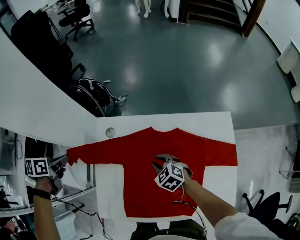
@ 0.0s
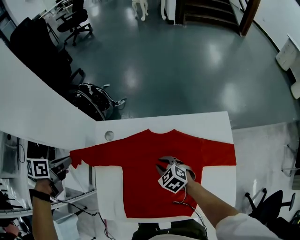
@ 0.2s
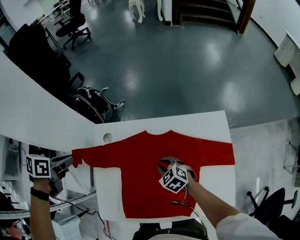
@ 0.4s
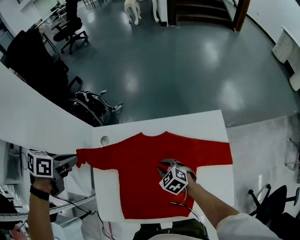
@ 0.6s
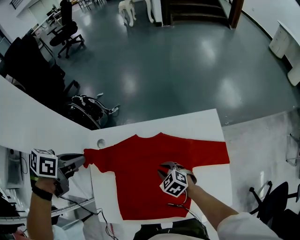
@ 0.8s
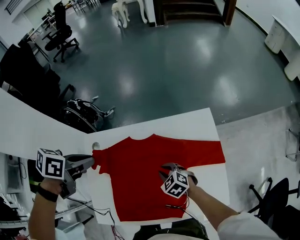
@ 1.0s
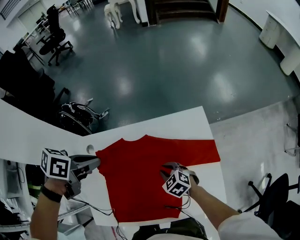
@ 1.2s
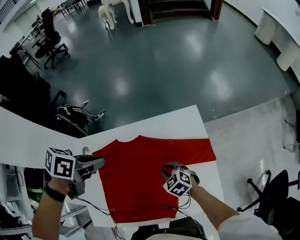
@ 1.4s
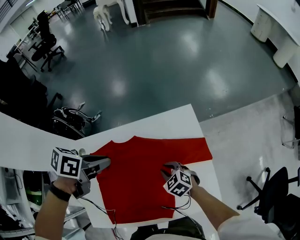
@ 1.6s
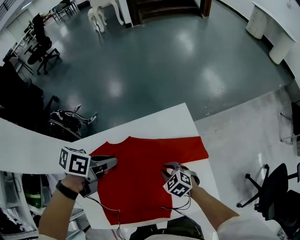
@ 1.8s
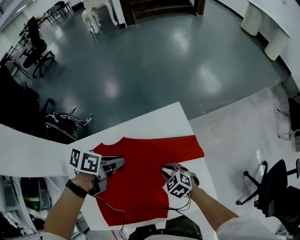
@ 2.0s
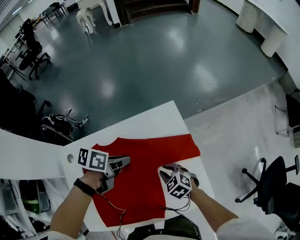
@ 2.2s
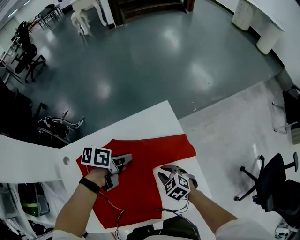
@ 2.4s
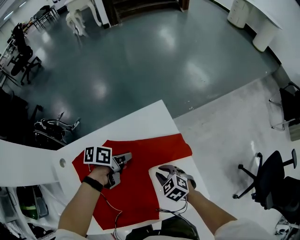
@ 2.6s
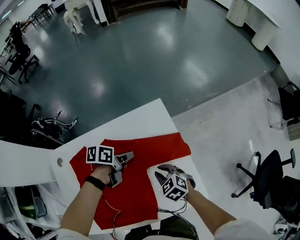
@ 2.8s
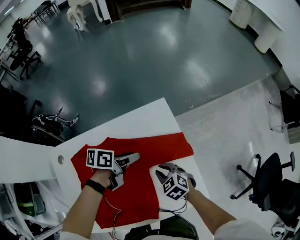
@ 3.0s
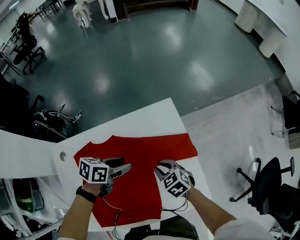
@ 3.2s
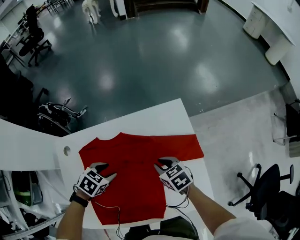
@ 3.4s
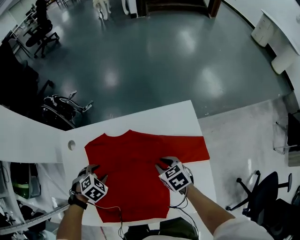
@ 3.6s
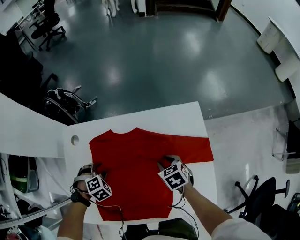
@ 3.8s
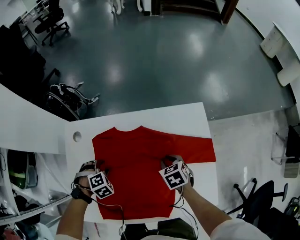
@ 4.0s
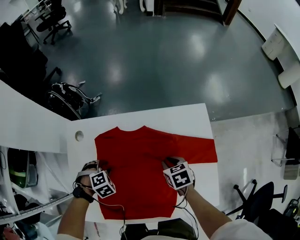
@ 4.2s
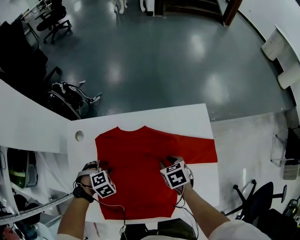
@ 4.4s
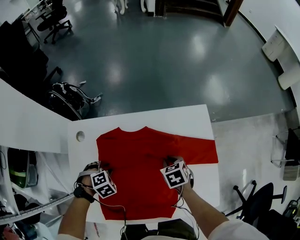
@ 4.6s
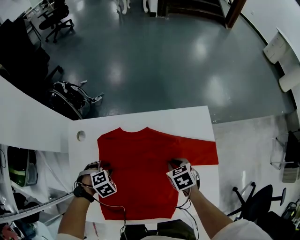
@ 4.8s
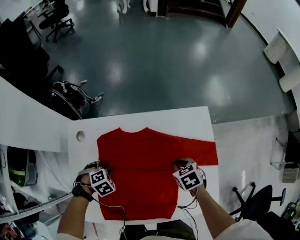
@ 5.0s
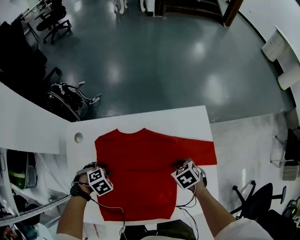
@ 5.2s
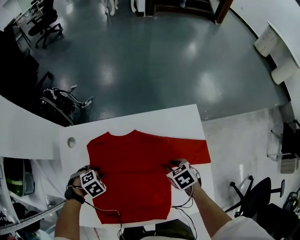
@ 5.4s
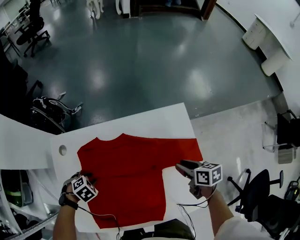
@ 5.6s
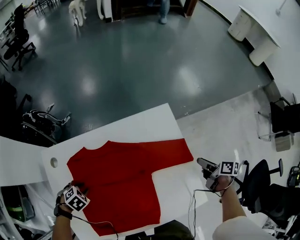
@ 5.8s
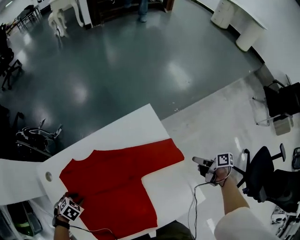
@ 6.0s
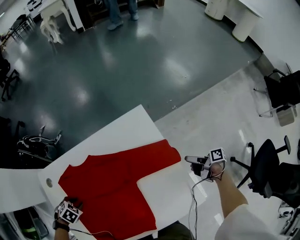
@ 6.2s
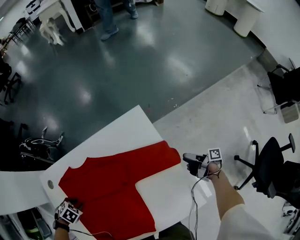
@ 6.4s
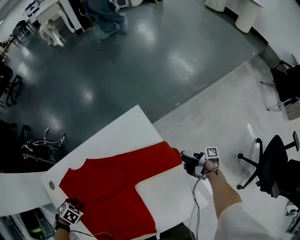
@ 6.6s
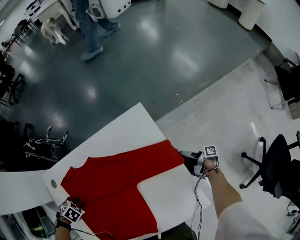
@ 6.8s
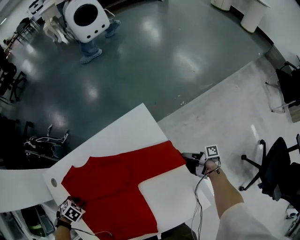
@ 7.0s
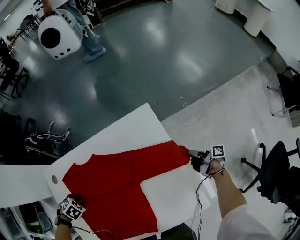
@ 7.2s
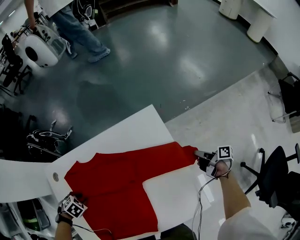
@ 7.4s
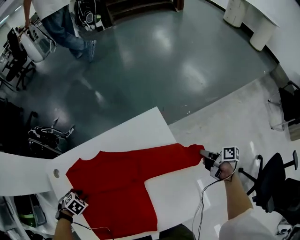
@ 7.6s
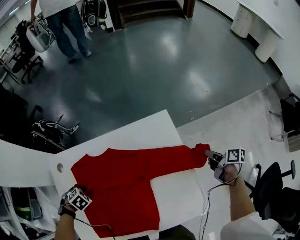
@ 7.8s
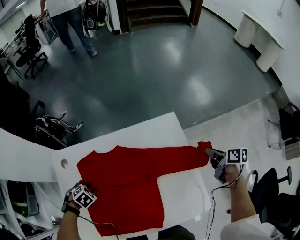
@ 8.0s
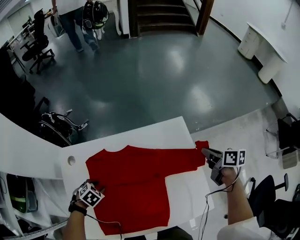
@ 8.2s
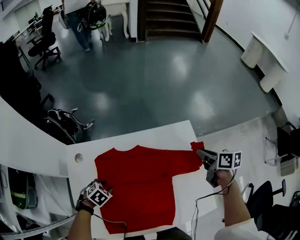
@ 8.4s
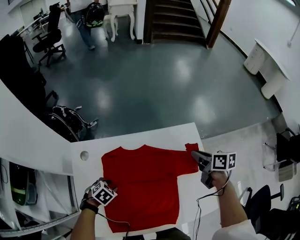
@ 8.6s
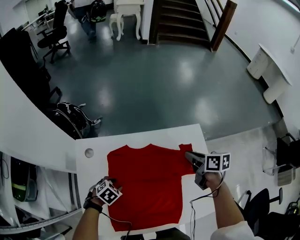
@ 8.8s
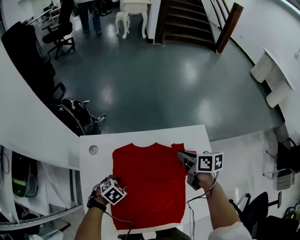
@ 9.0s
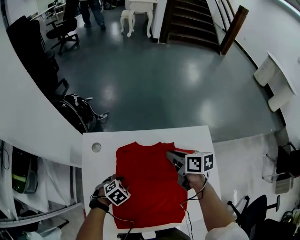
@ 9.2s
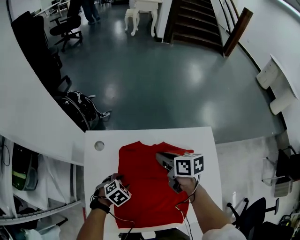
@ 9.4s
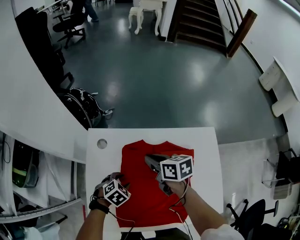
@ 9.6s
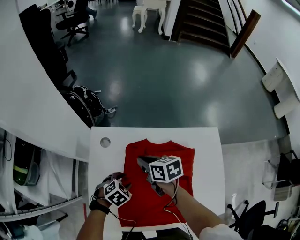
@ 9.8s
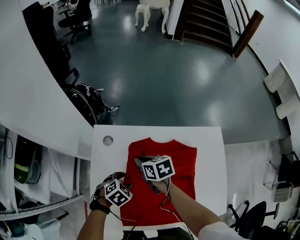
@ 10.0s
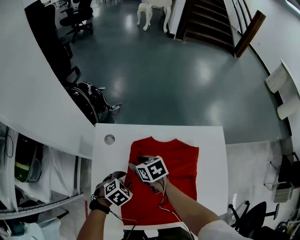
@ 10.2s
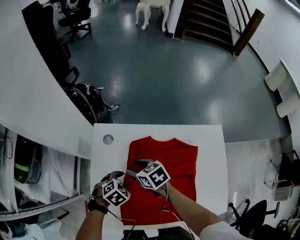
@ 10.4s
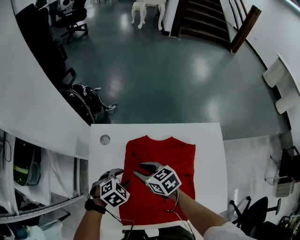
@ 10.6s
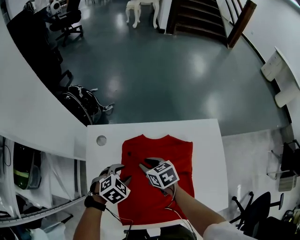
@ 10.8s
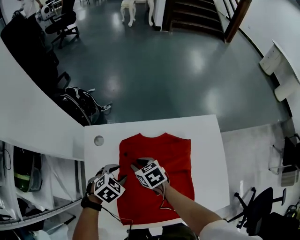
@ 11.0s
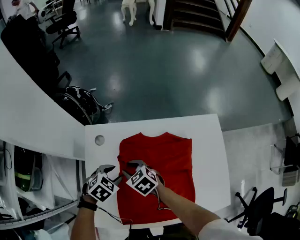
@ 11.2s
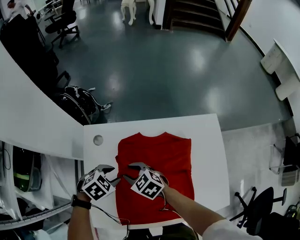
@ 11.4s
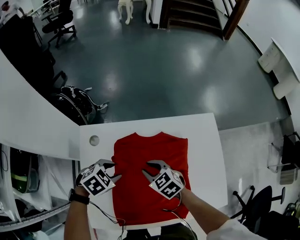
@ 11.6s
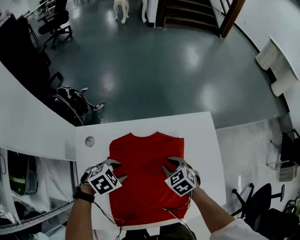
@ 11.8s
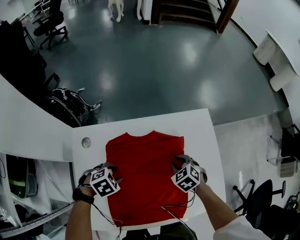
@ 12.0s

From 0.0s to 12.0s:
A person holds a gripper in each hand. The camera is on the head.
From 0.0s to 1.6s: The left gripper ends up some 40 cm from where it was, and rotates some 40 degrees. The right gripper moves some 25 cm.
From 1.6s to 3.0s: The left gripper ends up roughly 25 cm from where it was, and opens its fingers, while the right gripper ends up some 10 cm from where it was.
From 3.0s to 4.4s: The left gripper changes place by about 35 cm, and angles its fingers downward, by about 50 degrees; the right gripper changes place by roughly 10 cm.
From 4.4s to 6.0s: The right gripper moves about 35 cm, and rotates around the line of its fingers by roughly 70 degrees, clockwise from behind.
From 6.0s to 7.6s: The right gripper reaches some 10 cm downward, then returns, and closes.
From 7.6s to 9.0s: The left gripper swivels about 30 degrees; the right gripper changes place by about 50 cm, and rotates around the line of its fingers by approximately 40 degrees, counterclockwise from behind.
From 9.0s to 10.4s: The left gripper goes roughly 5 cm to the left, while the right gripper moves to the left, about 30 cm, changes its angle by about 40 degrees, and opens.
From 10.4s to 12.0s: The left gripper moves about 5 cm, and turns by some 20 degrees, while the right gripper shifts by about 30 cm, and turns by some 40 degrees.

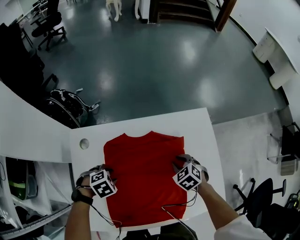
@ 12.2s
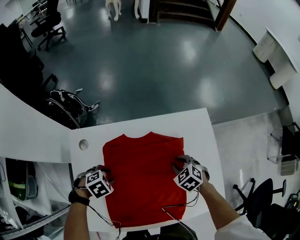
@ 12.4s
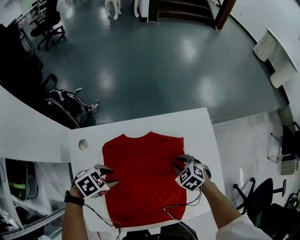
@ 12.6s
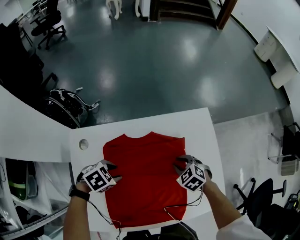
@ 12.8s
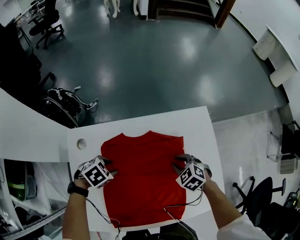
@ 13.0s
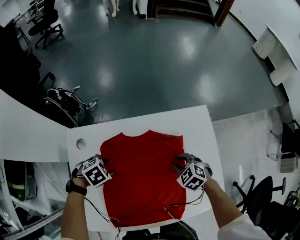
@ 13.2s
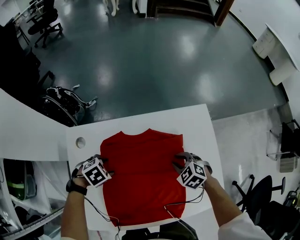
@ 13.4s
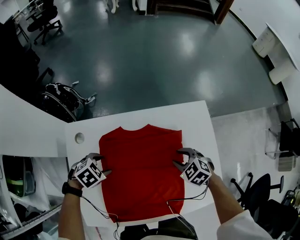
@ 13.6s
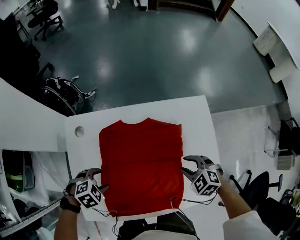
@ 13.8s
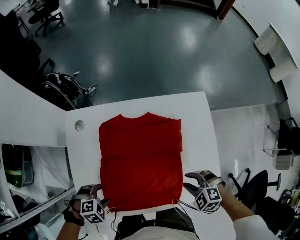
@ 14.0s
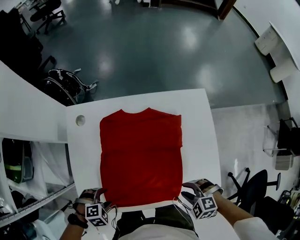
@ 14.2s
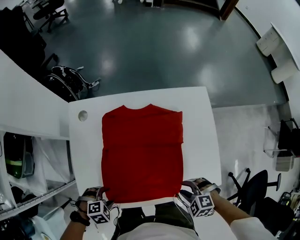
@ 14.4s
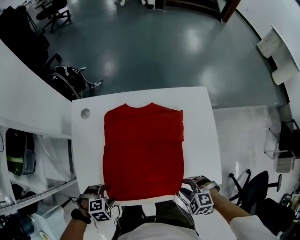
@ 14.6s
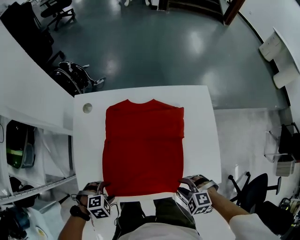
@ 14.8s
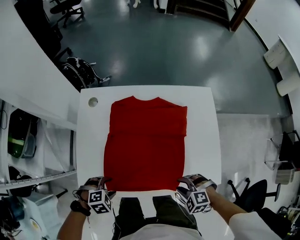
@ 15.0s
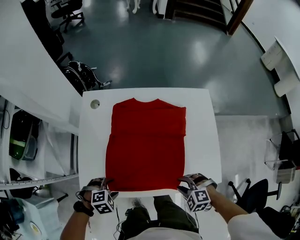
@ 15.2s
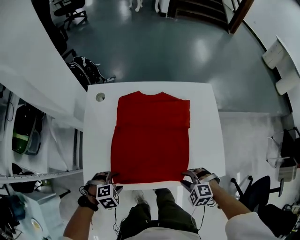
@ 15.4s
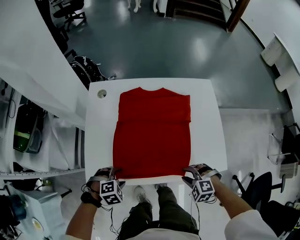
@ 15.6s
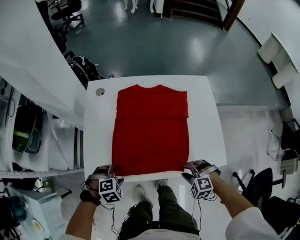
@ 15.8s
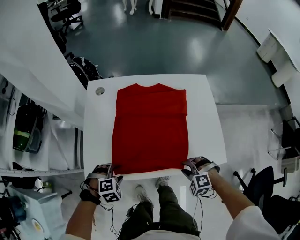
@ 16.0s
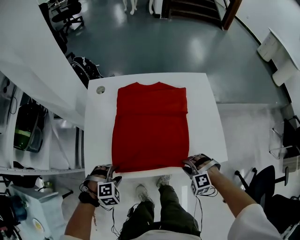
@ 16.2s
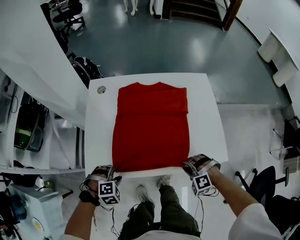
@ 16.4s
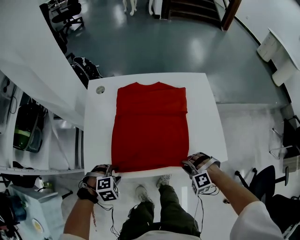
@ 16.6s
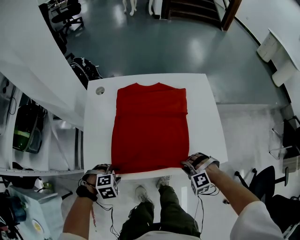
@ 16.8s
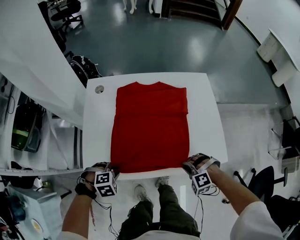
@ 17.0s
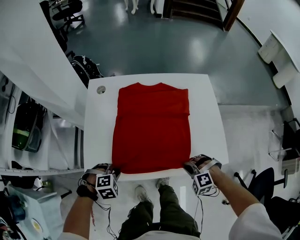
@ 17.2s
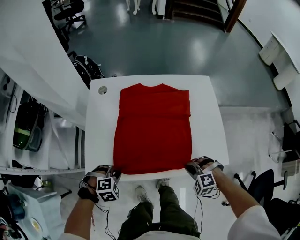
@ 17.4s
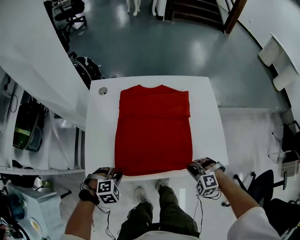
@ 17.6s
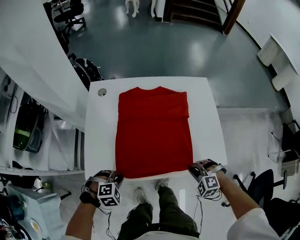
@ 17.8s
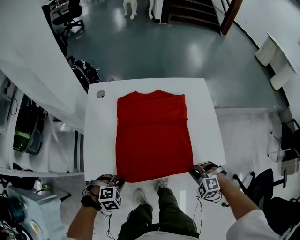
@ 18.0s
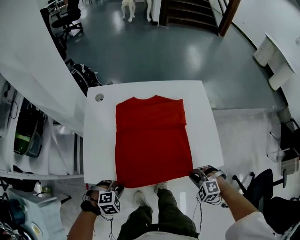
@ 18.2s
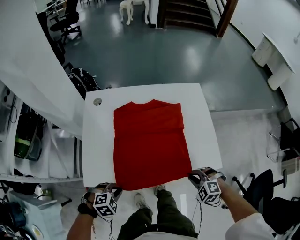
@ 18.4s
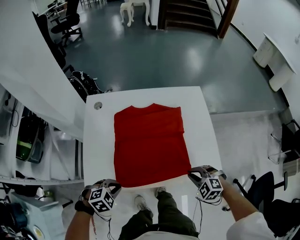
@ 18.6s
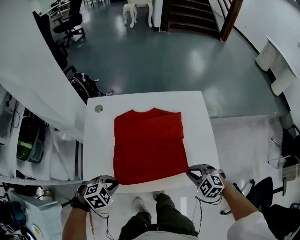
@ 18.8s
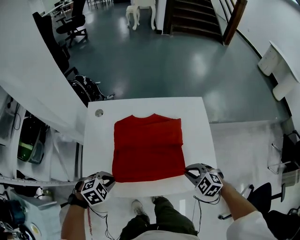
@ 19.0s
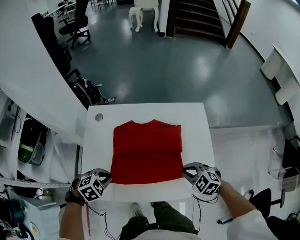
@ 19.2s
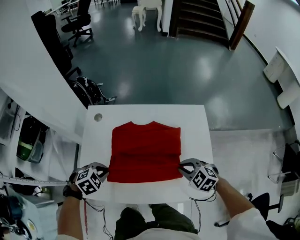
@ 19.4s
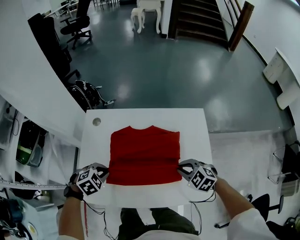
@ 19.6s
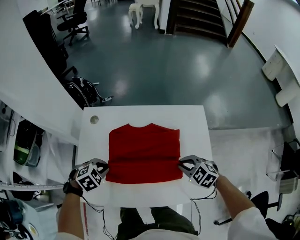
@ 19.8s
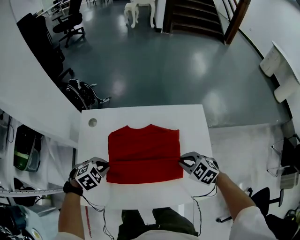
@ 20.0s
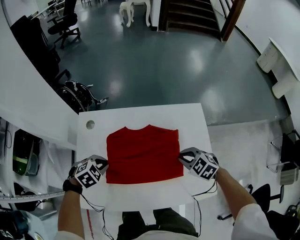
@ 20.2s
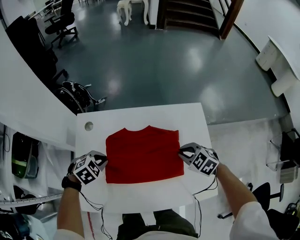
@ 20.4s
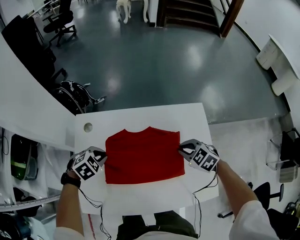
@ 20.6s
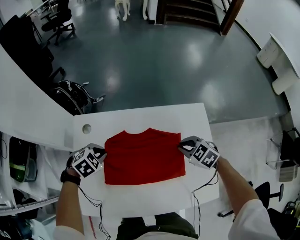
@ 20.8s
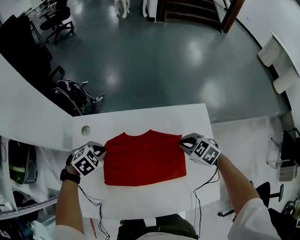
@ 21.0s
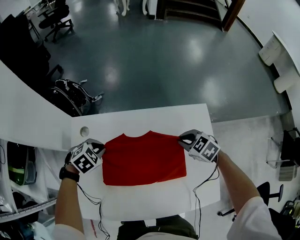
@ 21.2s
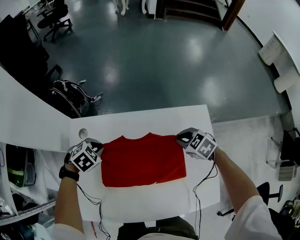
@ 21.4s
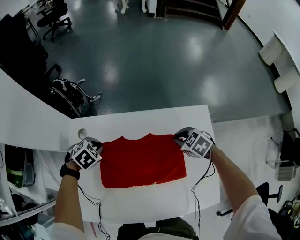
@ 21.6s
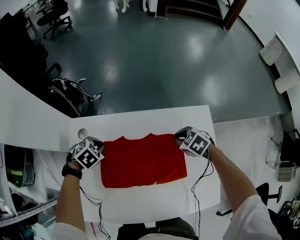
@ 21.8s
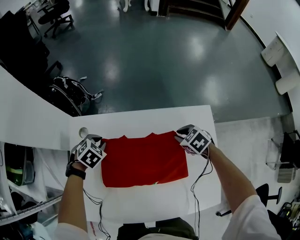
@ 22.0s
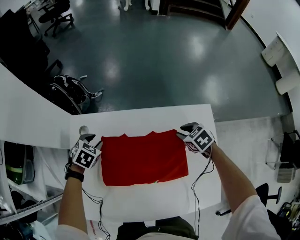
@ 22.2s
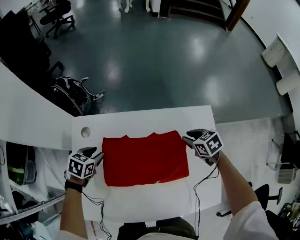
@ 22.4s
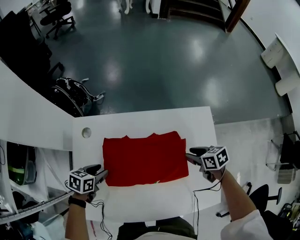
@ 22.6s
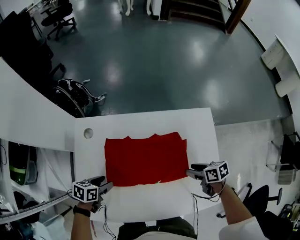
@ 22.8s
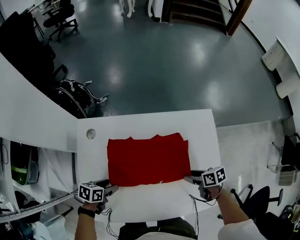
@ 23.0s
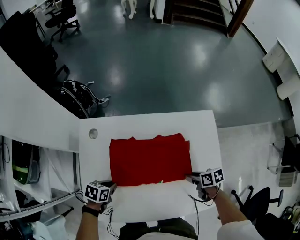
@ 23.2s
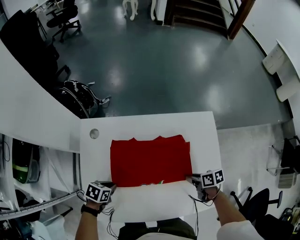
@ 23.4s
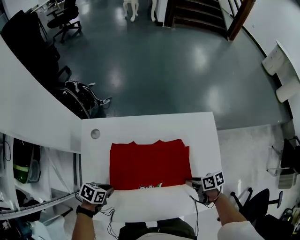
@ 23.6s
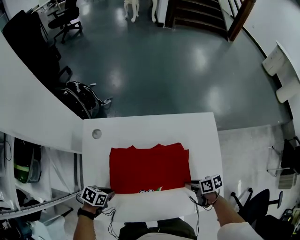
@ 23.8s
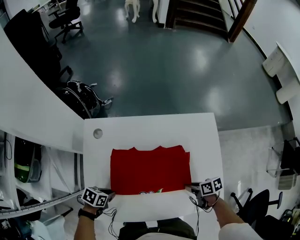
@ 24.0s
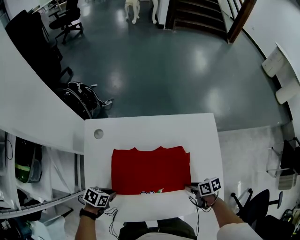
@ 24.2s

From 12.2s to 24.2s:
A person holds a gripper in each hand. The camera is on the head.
From 12.2s to 13.8s: The right gripper moves roughly 10 cm, and rotates approximately 20 degrees. Meanwhile the left gripper changes place by some 5 cm.
From 13.8s to 15.2s: The right gripper moves approximately 25 cm, and changes its angle by some 20 degrees; the left gripper ends up roughly 20 cm from where it was.
From 15.2s to 16.6s: The right gripper turns by some 20 degrees.
From 16.6s to 18.2s: The left gripper shifts by roughly 5 cm, and closes. The right gripper ends up some 5 cm from where it was.
From 18.2s to 19.8s: The grippers both shift forward by some 25 cm. The right gripper rotates about 30 degrees.
From 19.8s to 21.2s: Both grippers move forward, some 20 cm.
From 21.2s to 22.6s: The left gripper shifts by roughly 10 cm, rolls counterclockwise, seen from behind, by about 50 degrees, and opens up. Meanwhile the right gripper shifts by some 5 cm, rotates about 40 degrees, and opens.
From 22.6s to 24.2s: The right gripper moves roughly 20 cm, and turns by approximately 20 degrees. The left gripper ends up roughly 15 cm from where it was, and closes up.
